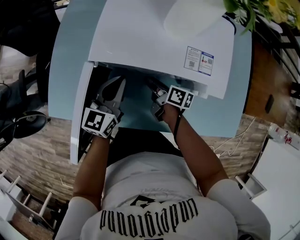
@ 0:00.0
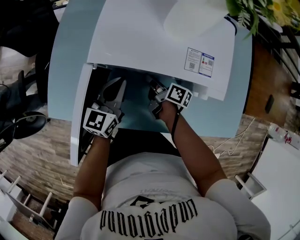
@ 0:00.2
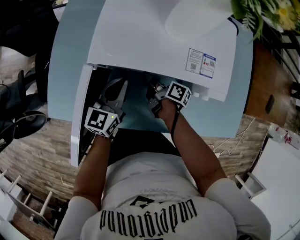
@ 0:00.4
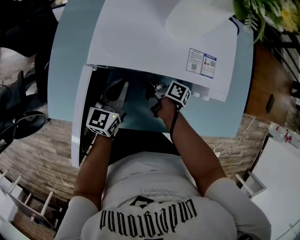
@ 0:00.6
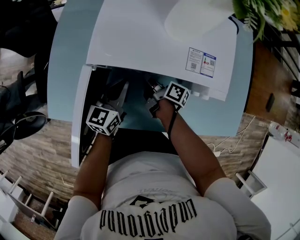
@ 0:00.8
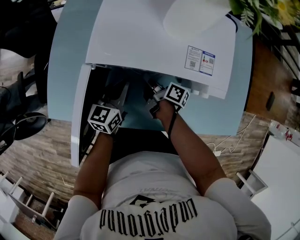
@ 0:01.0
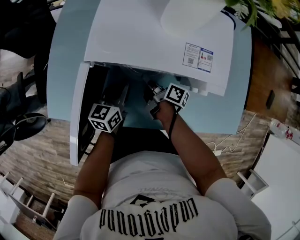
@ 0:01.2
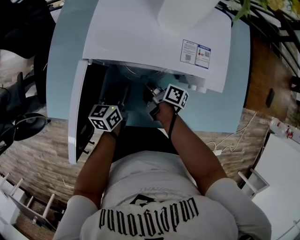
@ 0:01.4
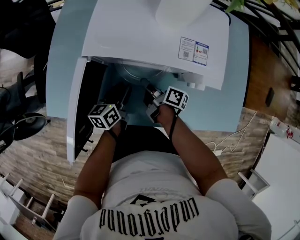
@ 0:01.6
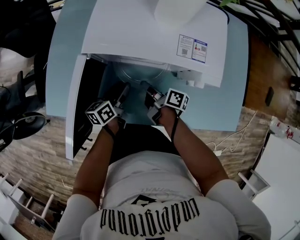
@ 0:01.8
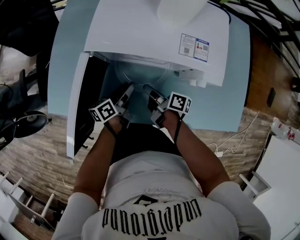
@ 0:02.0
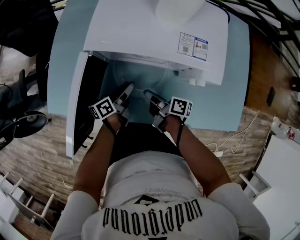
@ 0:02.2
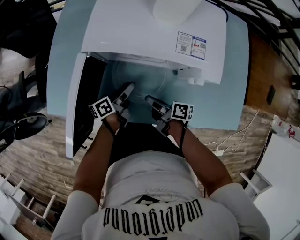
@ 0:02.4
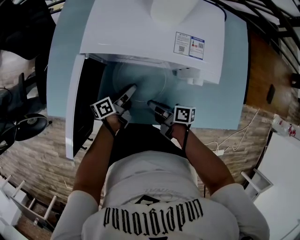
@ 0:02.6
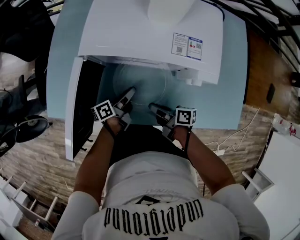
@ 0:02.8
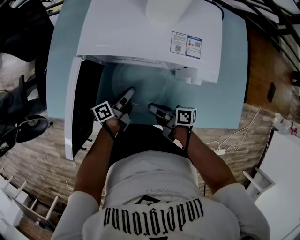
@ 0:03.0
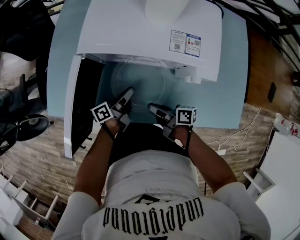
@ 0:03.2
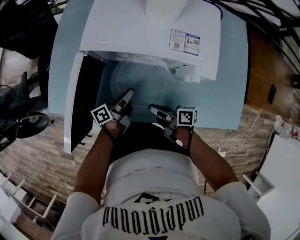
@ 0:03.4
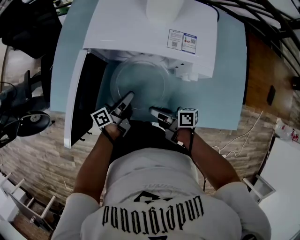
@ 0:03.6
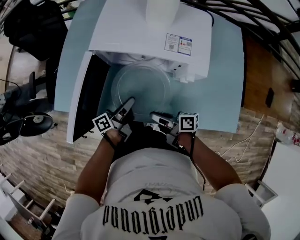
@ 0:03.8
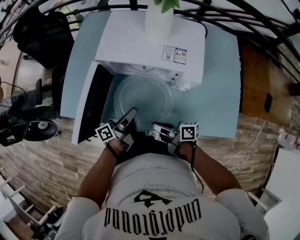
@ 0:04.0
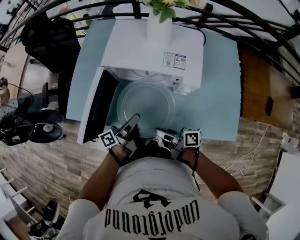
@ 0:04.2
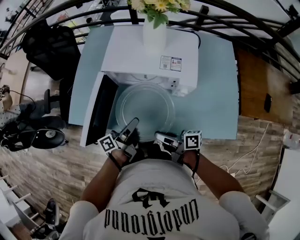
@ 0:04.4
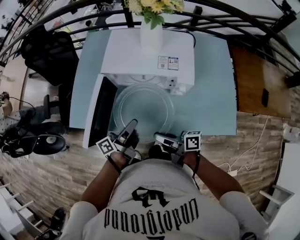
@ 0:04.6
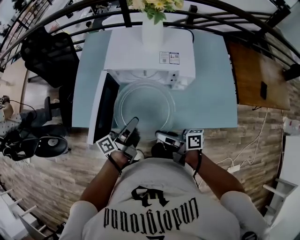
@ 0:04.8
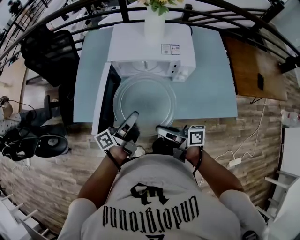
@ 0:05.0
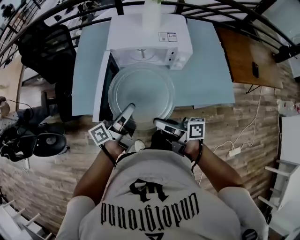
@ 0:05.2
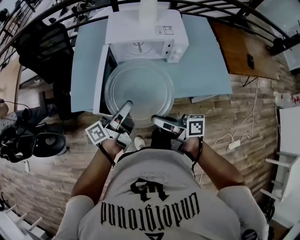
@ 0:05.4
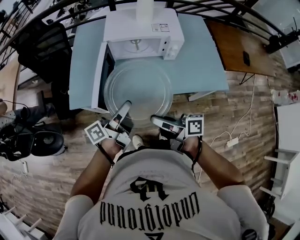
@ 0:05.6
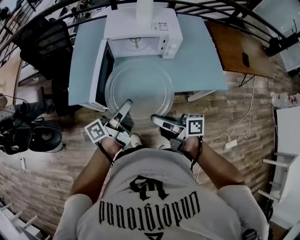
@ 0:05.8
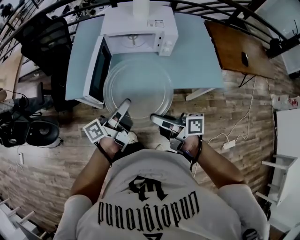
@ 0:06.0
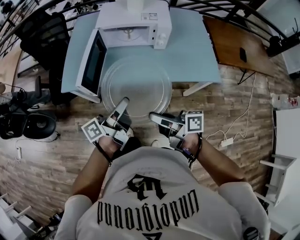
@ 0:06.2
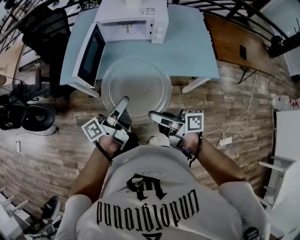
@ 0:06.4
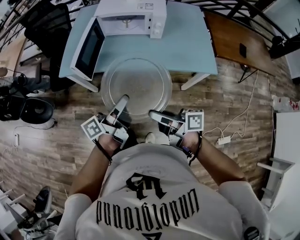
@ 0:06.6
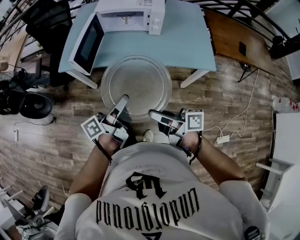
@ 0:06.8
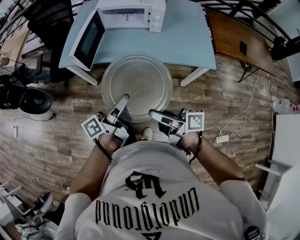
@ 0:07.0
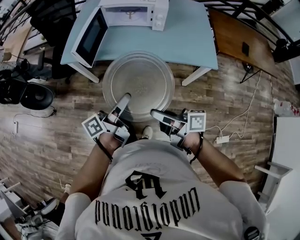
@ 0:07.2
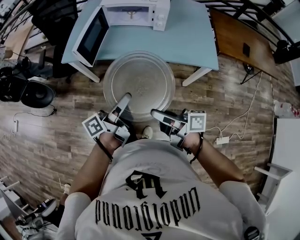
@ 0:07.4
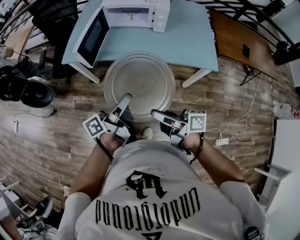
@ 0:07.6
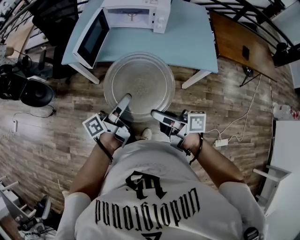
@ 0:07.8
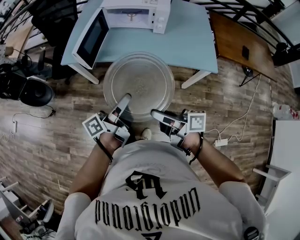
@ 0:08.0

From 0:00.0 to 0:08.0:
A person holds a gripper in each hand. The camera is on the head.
From 0:00.0 to 0:01.6: The left gripper moves downward, roughly 10 cm, changes its angle by about 30 degrees, and opens up.
From 0:01.6 to 0:03.2: The right gripper travels backward by some 15 cm, and turns by roughly 20 degrees, while the left gripper shifts by roughly 5 cm, and swivels some 30 degrees.
From 0:03.2 to 0:04.8: The two grippers go roughly 20 cm upward and backward.
From 0:04.8 to 0:06.4: The two grippers go some 25 cm backward.
From 0:06.4 to 0:08.0: The grippers both shift backward by some 10 cm.

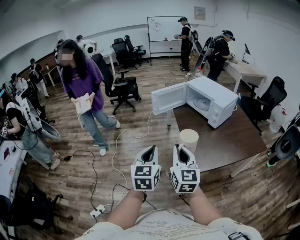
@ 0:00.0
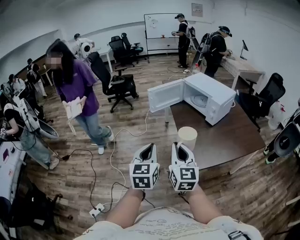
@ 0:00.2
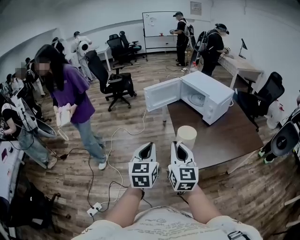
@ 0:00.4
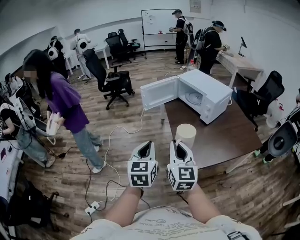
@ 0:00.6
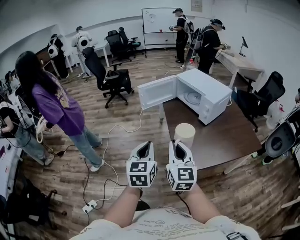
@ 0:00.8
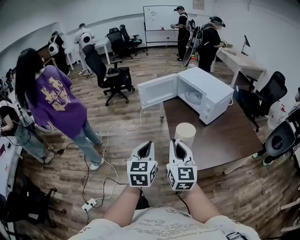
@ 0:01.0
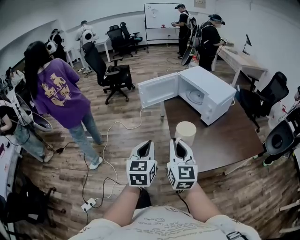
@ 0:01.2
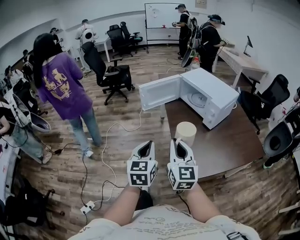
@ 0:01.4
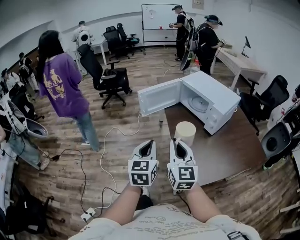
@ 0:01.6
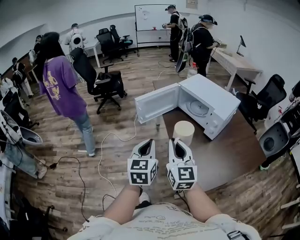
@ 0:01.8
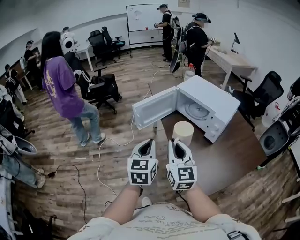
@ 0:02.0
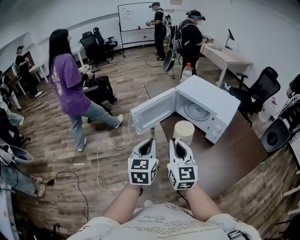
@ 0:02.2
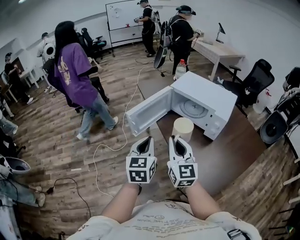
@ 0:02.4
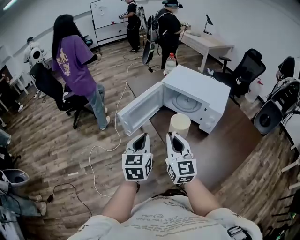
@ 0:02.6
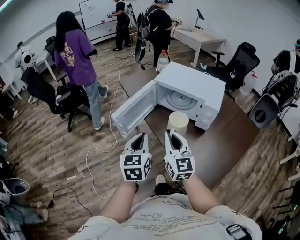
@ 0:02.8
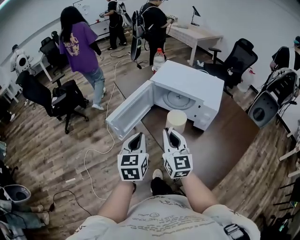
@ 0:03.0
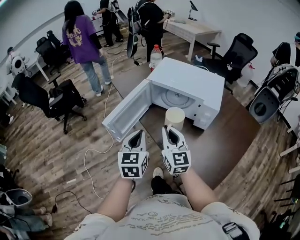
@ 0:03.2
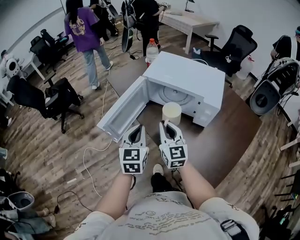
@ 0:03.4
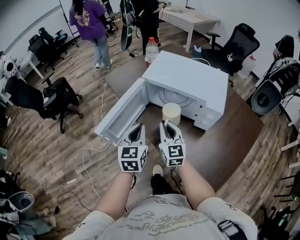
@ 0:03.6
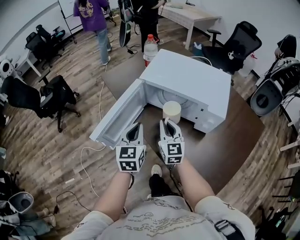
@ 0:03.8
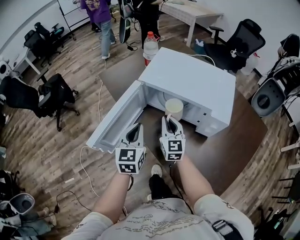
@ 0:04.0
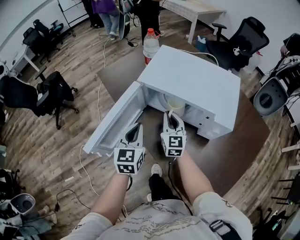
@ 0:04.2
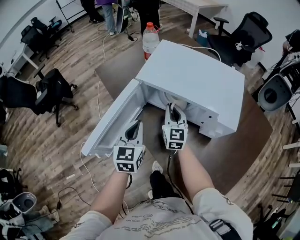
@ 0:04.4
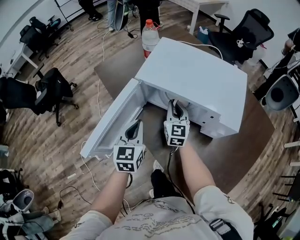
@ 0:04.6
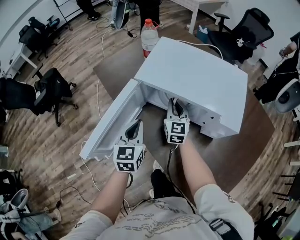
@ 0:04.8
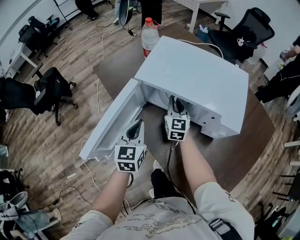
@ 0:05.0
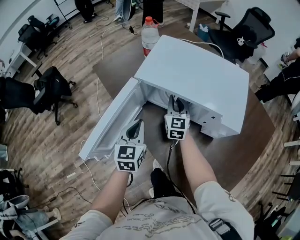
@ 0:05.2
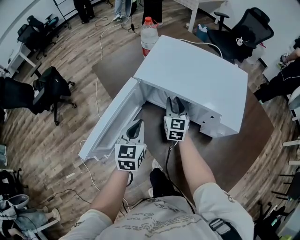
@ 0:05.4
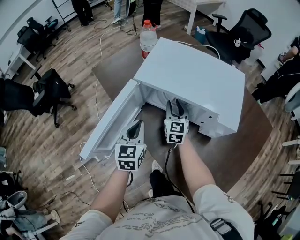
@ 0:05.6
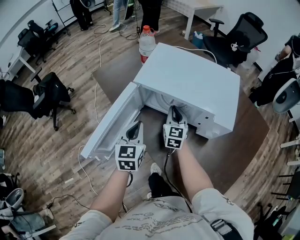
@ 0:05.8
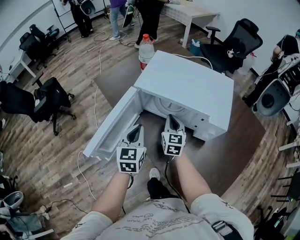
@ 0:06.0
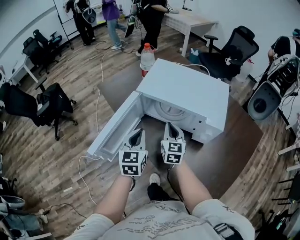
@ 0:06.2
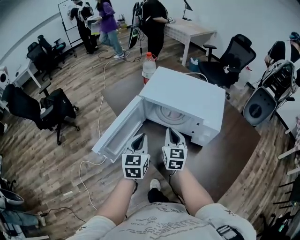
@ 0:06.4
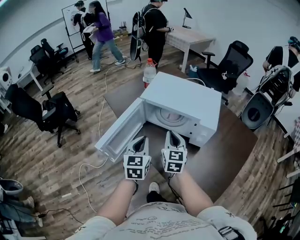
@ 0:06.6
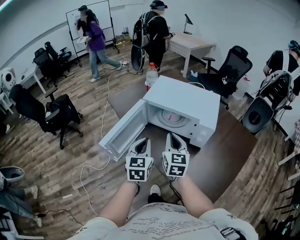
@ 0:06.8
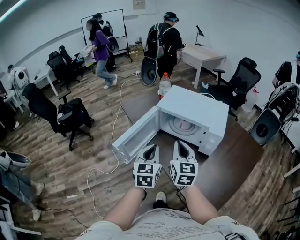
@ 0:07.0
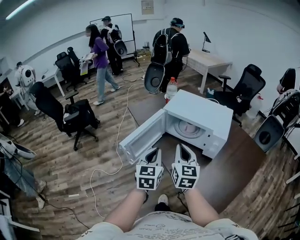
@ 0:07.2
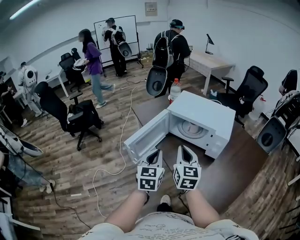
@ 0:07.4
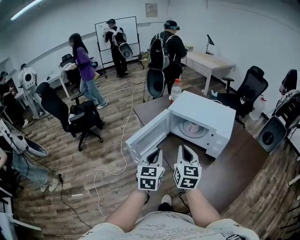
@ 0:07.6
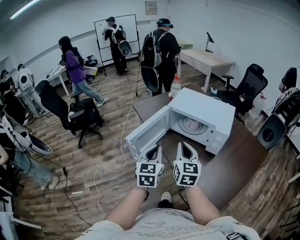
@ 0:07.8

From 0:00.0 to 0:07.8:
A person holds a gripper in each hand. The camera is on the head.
From 0:00.0 to 0:01.6: The two grippers go roughly 15 cm forward.
From 0:01.6 to 0:03.2: Both grippers travel together forward, approximately 30 cm. The right gripper changes its angle by approximately 20 degrees; the left gripper turns by about 30 degrees.
From 0:03.2 to 0:04.6: The grippers both shift forward and downward by approximately 25 cm.
From 0:04.6 to 0:06.2: The right gripper moves backward, approximately 10 cm, and opens, then closes once more; the left gripper moves about 5 cm.
From 0:06.2 to 0:07.8: Both grippers travel together backward and upward, approximately 25 cm.

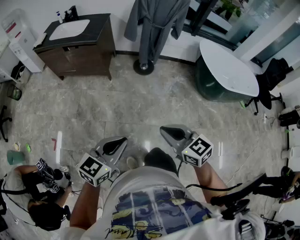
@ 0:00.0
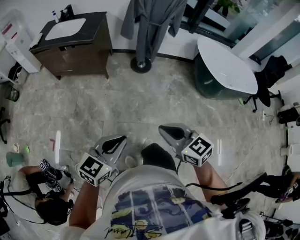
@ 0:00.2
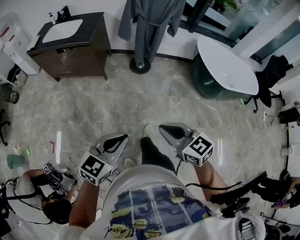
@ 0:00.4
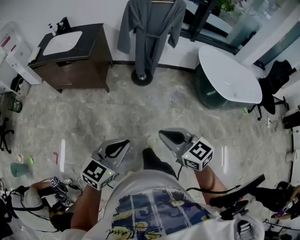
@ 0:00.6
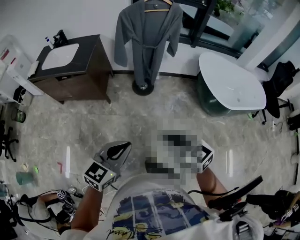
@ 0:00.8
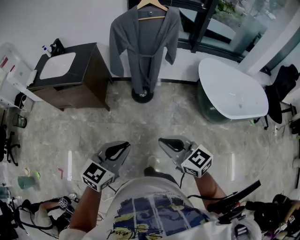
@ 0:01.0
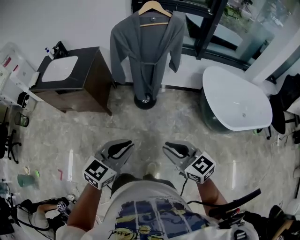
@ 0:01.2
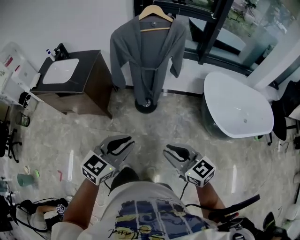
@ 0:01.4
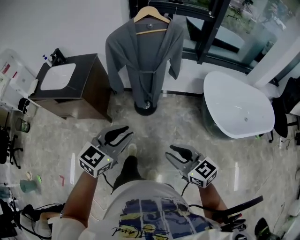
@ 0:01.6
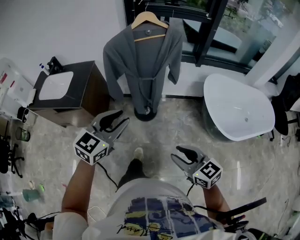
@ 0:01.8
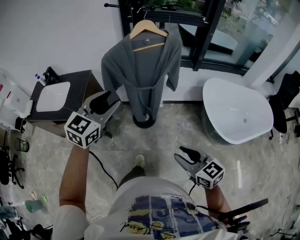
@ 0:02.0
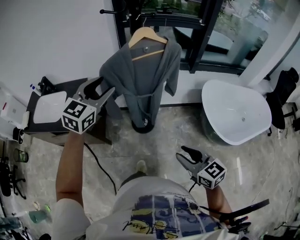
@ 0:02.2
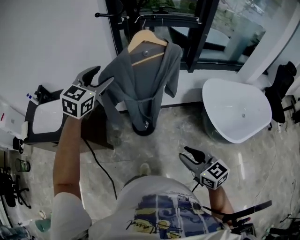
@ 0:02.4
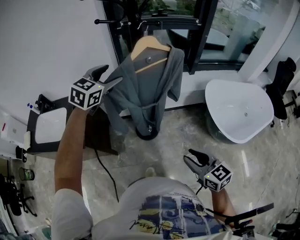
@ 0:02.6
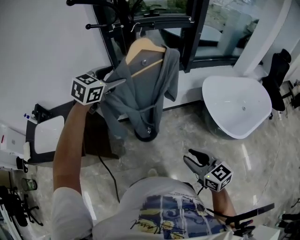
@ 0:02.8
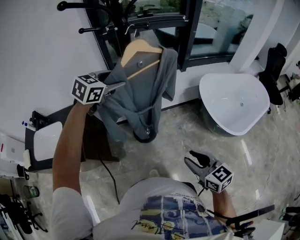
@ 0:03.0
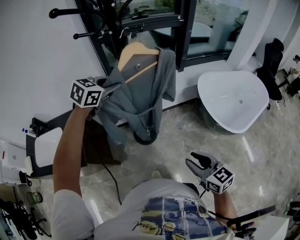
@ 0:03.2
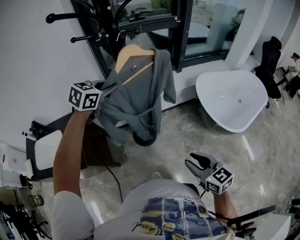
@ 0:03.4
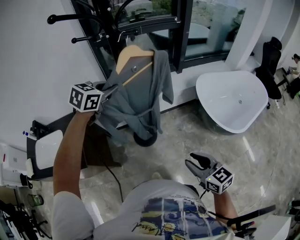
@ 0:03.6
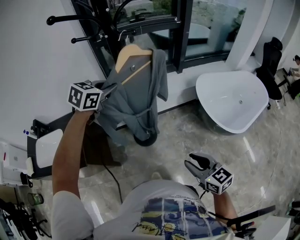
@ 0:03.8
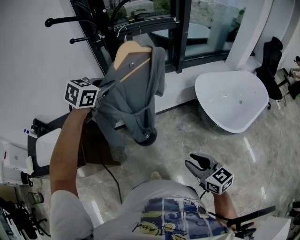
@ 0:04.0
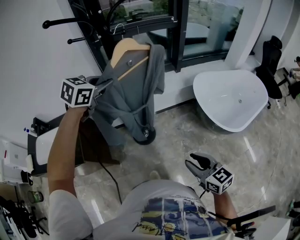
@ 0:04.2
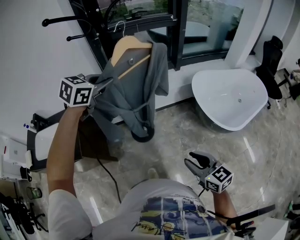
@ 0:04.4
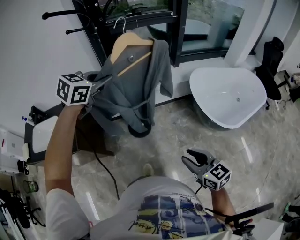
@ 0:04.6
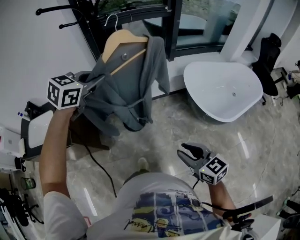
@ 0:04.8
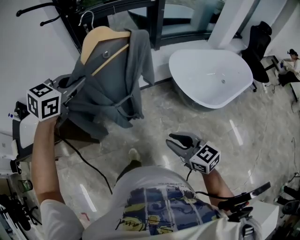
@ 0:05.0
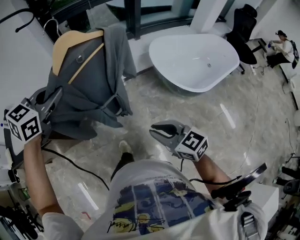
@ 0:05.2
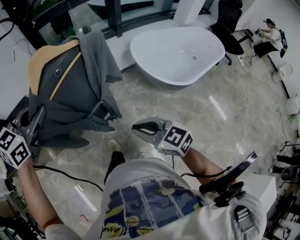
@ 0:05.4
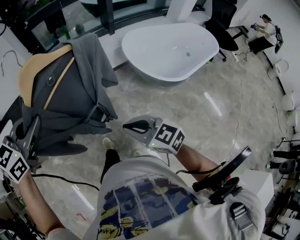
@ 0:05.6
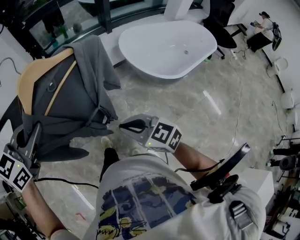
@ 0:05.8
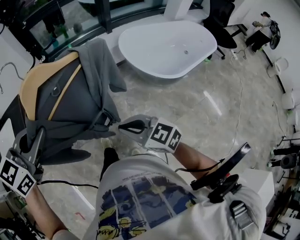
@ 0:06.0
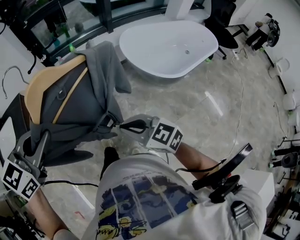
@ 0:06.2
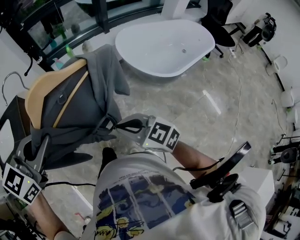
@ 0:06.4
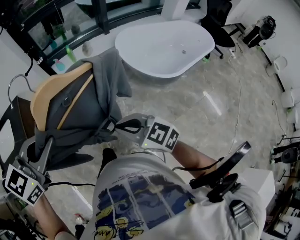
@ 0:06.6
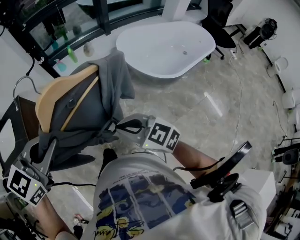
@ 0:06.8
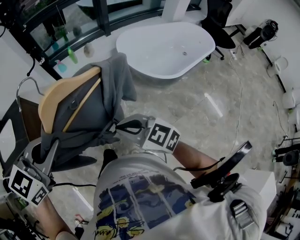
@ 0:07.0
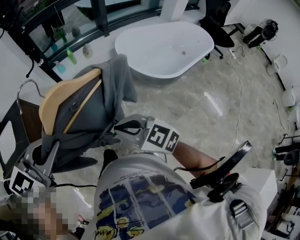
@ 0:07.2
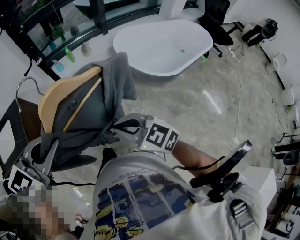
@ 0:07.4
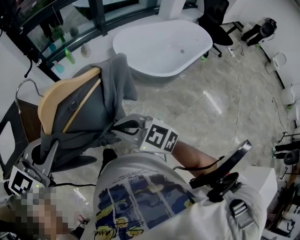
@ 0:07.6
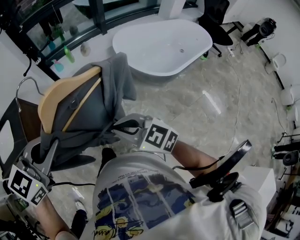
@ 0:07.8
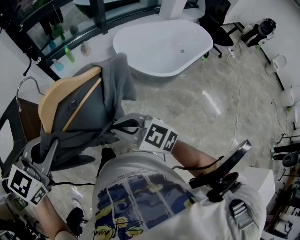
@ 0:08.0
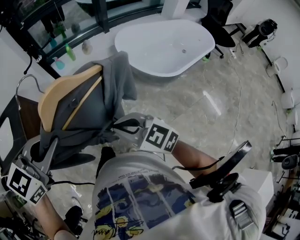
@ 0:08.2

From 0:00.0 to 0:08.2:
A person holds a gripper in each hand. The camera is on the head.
From 0:00.0 to 0:01.6: The left gripper heads forward, covering some 40 cm, while the right gripper moves forward and to the right, about 40 cm, and opens its fingers.
From 0:01.6 to 0:03.2: The right gripper shifts by some 15 cm, and changes its angle by about 30 degrees, while the left gripper moves approximately 50 cm, rotates roughly 30 degrees, and opens, then closes once more.
From 0:03.2 to 0:05.0: The left gripper heads backward and to the right, covering roughly 20 cm; the right gripper shifts some 10 cm to the right and backward.
From 0:05.0 to 0:06.6: The right gripper heads backward, covering some 5 cm, and closes its fingers; the left gripper heads backward and to the right, covering approximately 30 cm.
From 0:06.6 to 0:08.2: The grippers move only a little.
